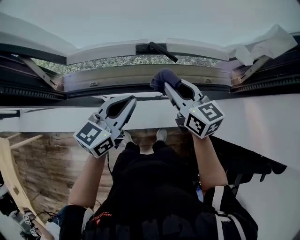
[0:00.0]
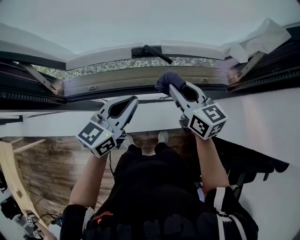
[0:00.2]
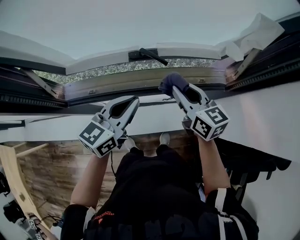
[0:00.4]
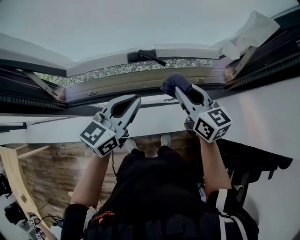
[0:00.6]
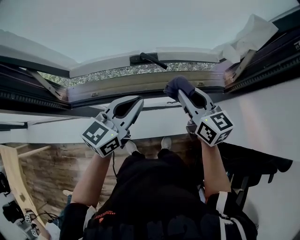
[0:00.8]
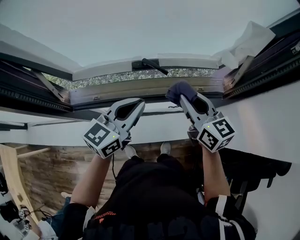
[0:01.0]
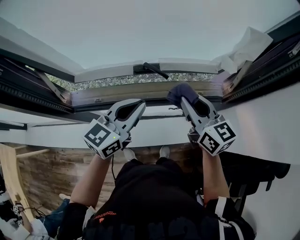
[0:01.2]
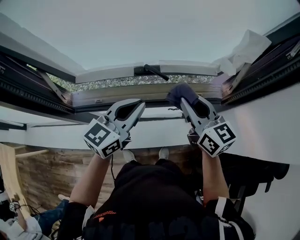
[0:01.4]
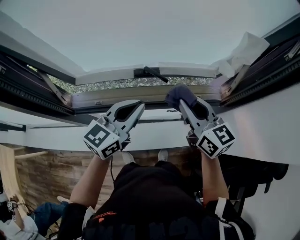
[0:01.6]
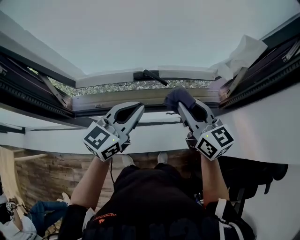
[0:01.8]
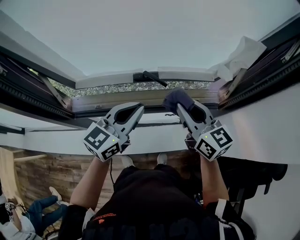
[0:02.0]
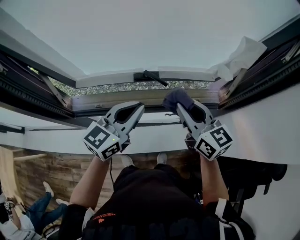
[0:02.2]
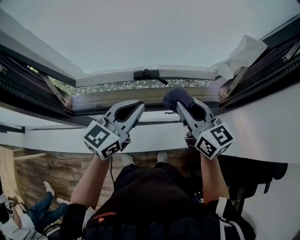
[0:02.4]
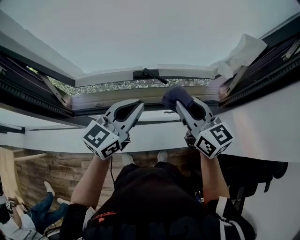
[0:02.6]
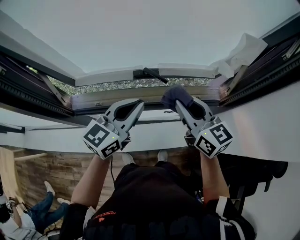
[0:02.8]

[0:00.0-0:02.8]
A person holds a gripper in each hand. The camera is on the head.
0:00.0 to 0:01.4: The right gripper shifts roughly 10 cm upward and to the right; the left gripper moves upward, approximately 10 cm.
0:01.4 to 0:02.8: The grippers stay close to where they were, moving slightly.

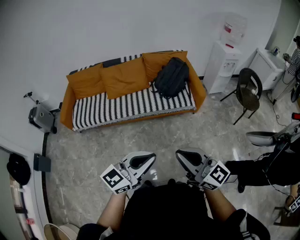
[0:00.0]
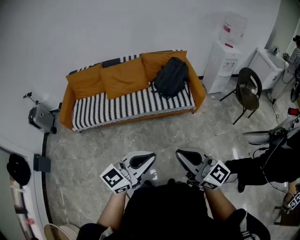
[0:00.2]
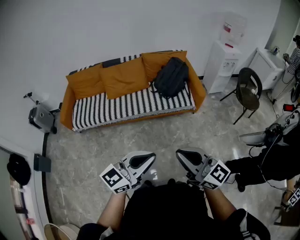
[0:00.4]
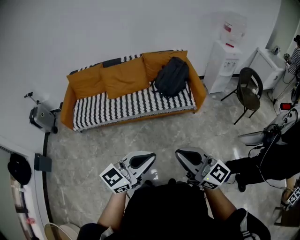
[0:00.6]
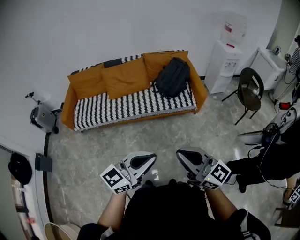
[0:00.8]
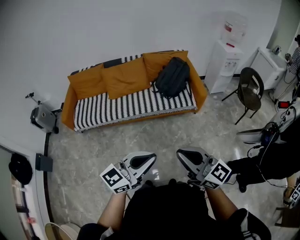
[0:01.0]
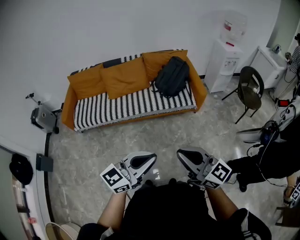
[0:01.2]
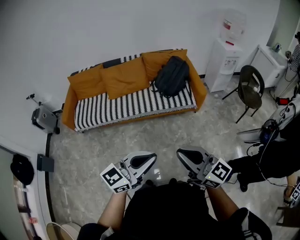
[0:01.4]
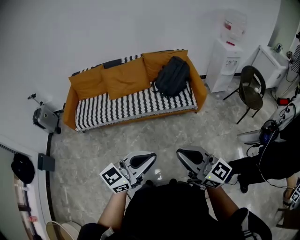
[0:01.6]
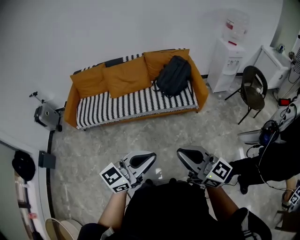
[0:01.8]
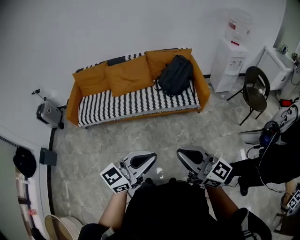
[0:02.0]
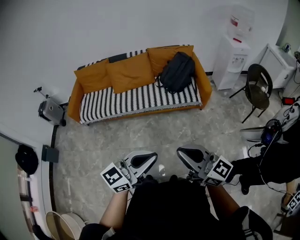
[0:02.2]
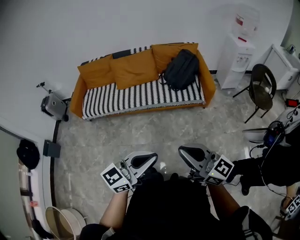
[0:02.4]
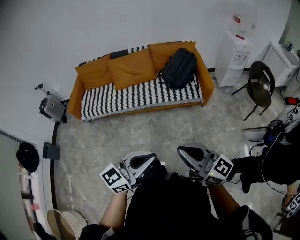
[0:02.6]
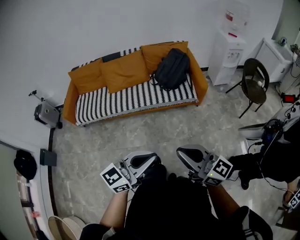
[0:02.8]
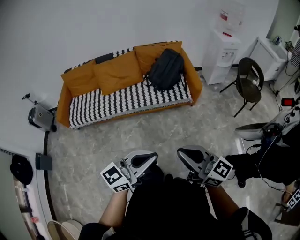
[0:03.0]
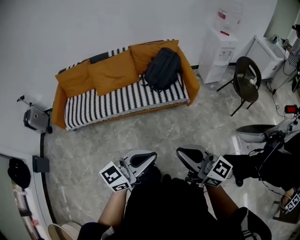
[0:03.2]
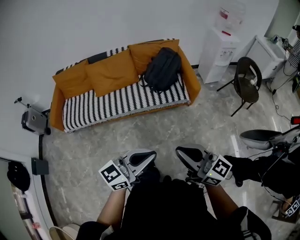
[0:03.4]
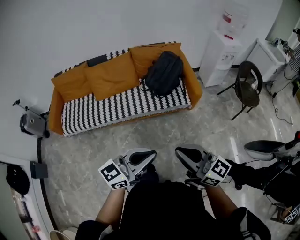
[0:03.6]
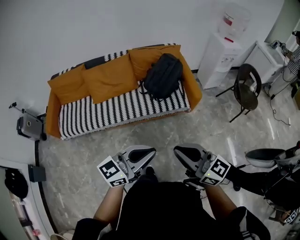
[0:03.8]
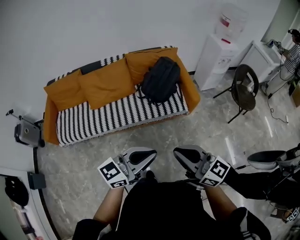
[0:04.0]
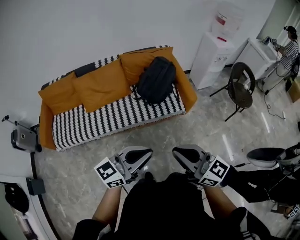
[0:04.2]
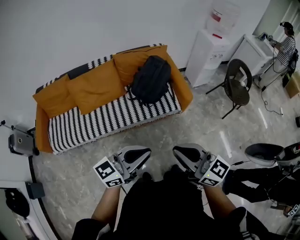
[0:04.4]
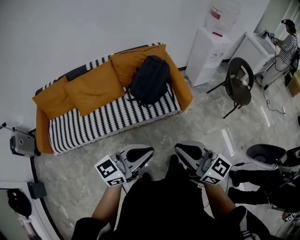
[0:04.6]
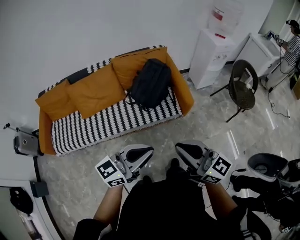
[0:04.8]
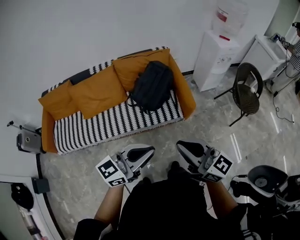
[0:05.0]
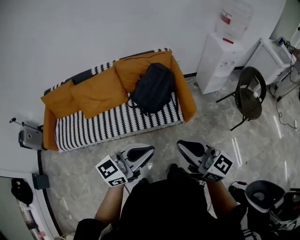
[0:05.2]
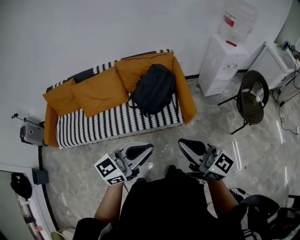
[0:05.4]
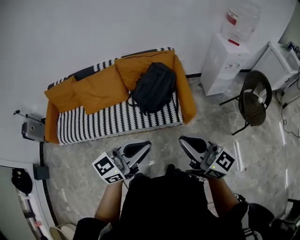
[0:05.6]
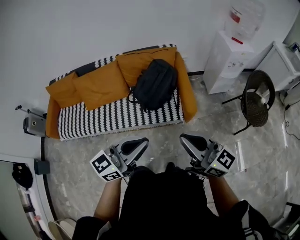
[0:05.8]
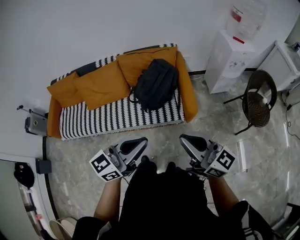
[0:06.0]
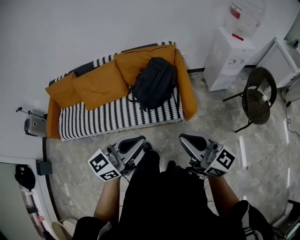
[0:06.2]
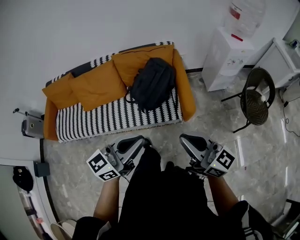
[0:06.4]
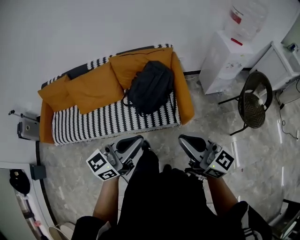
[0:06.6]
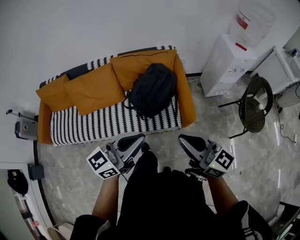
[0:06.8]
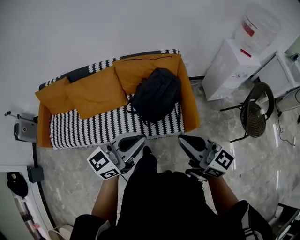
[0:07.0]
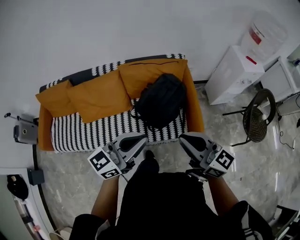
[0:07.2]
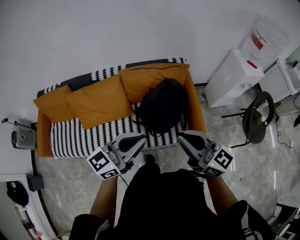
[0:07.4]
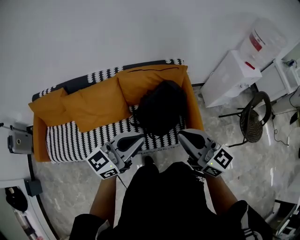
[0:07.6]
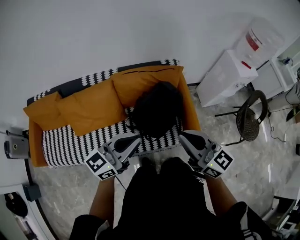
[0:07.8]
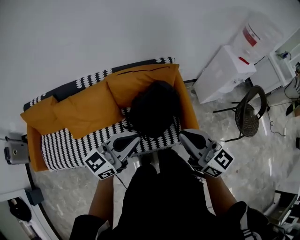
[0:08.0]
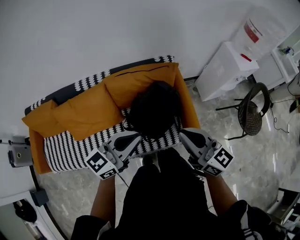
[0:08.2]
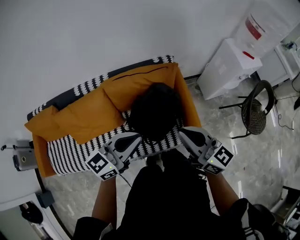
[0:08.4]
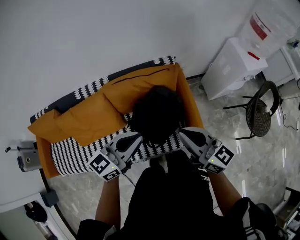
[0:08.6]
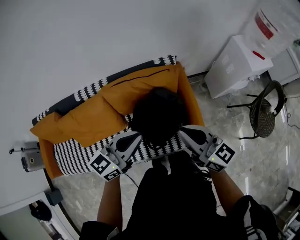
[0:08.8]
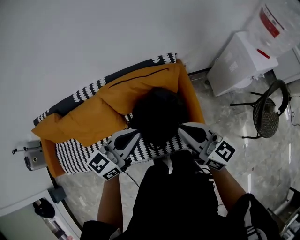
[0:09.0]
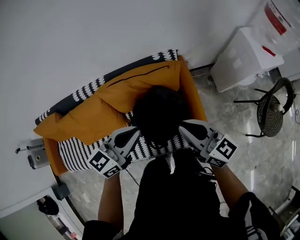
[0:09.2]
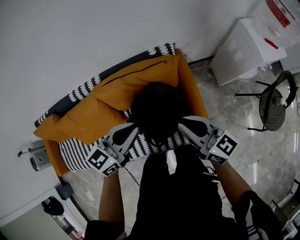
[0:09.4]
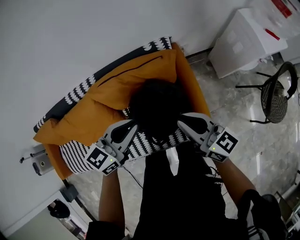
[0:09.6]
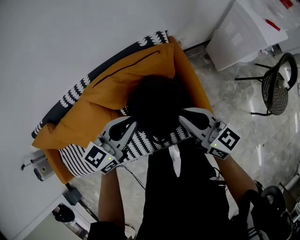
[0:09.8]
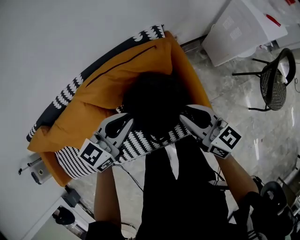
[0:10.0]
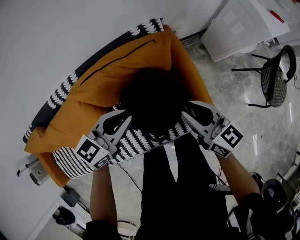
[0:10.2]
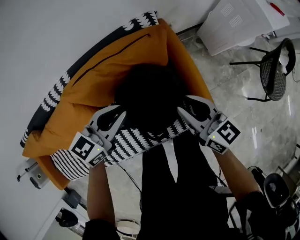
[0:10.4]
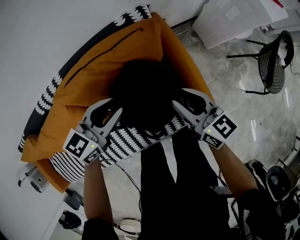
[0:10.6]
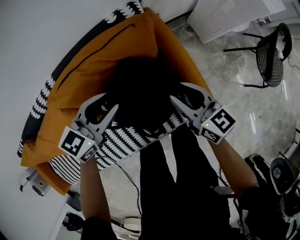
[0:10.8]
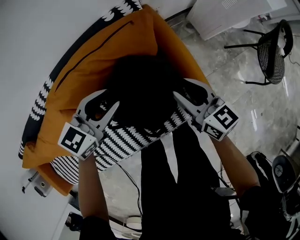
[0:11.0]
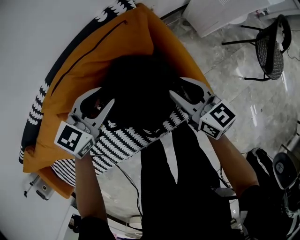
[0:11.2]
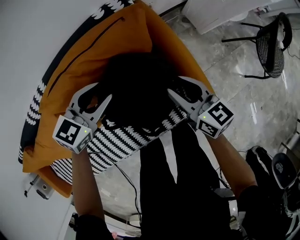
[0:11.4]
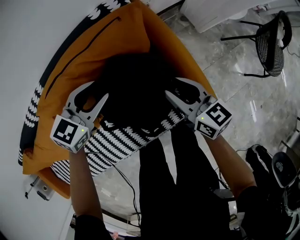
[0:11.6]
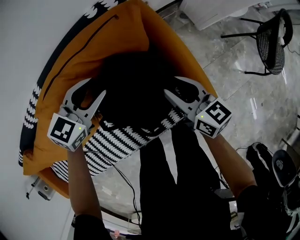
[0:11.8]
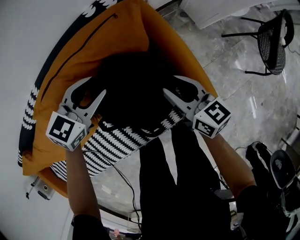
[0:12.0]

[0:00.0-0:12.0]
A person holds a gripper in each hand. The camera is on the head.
0:00.0 to 0:01.6: The grippers stay close to where they were, moving slightly.
0:01.6 to 0:03.0: The left gripper ends up roughly 5 cm from where it was, while the right gripper shifts by approximately 5 cm.
0:03.0 to 0:04.4: Both grippers travel together forward, roughly 25 cm.
0:04.4 to 0:06.0: Both grippers move to the right and forward, approximately 25 cm.
0:06.0 to 0:07.6: Both grippers move forward and to the left, approximately 30 cm.
0:07.6 to 0:09.0: The left gripper heads forward, covering roughly 20 cm. Meanwhile the right gripper travels forward and to the right by about 20 cm.
0:09.0 to 0:10.4: The right gripper is displaced downward by some 20 cm, and swivels some 20 degrees. The left gripper shifts roughly 20 cm downward and forward.
0:10.4 to 0:12.0: The left gripper travels downward and forward by about 15 cm, swivels about 20 degrees, and opens up. The right gripper heads downward, covering about 10 cm.

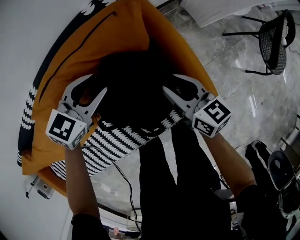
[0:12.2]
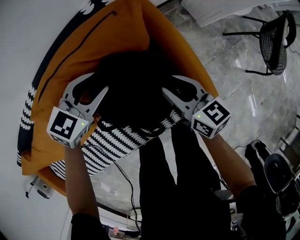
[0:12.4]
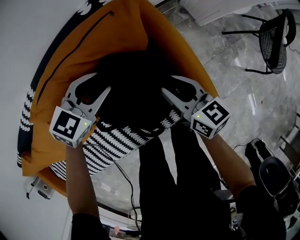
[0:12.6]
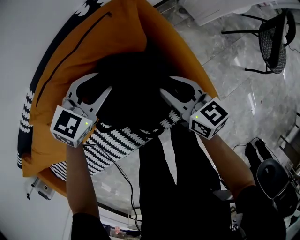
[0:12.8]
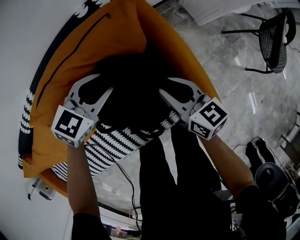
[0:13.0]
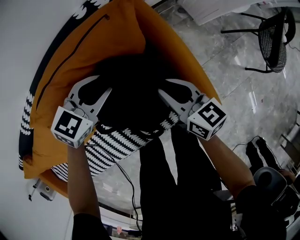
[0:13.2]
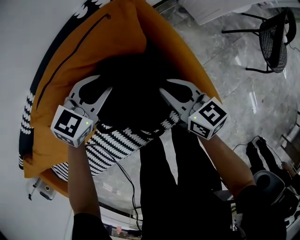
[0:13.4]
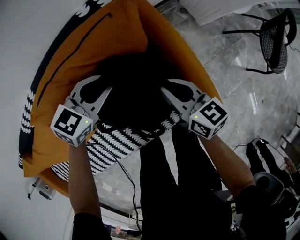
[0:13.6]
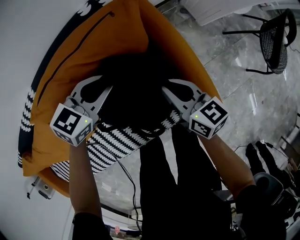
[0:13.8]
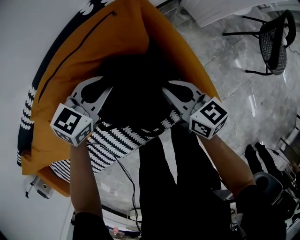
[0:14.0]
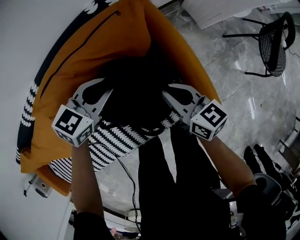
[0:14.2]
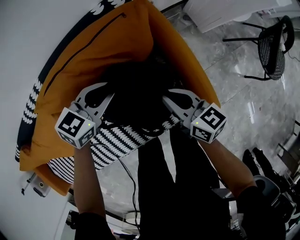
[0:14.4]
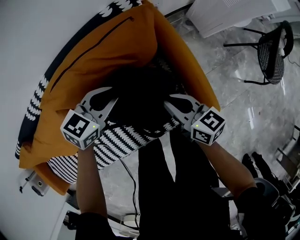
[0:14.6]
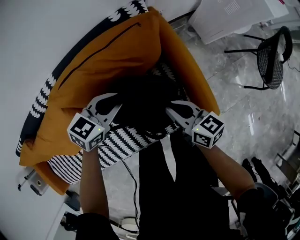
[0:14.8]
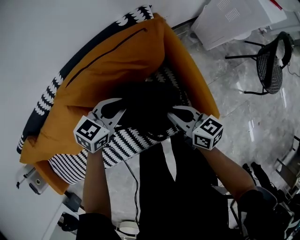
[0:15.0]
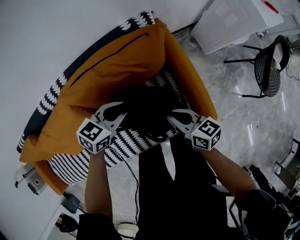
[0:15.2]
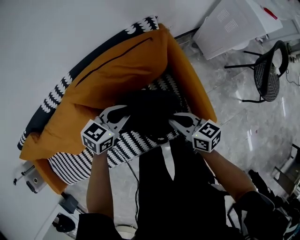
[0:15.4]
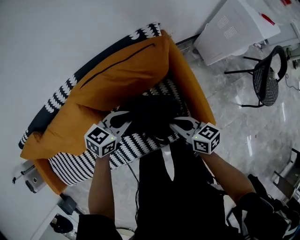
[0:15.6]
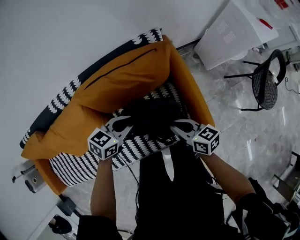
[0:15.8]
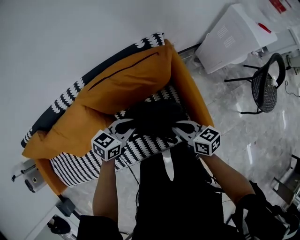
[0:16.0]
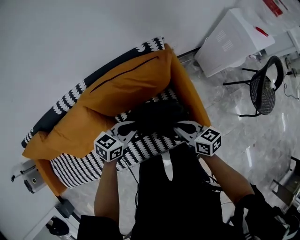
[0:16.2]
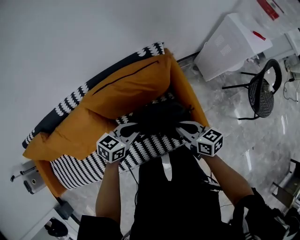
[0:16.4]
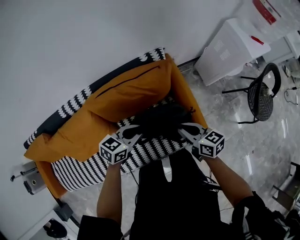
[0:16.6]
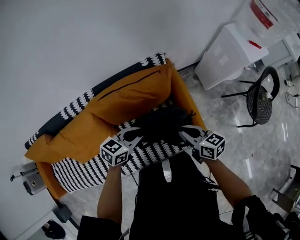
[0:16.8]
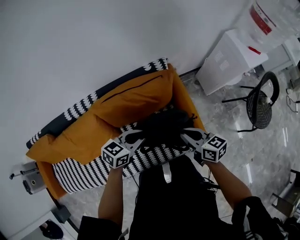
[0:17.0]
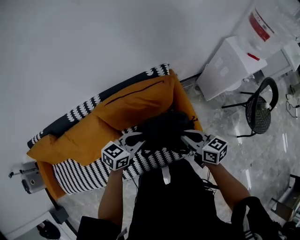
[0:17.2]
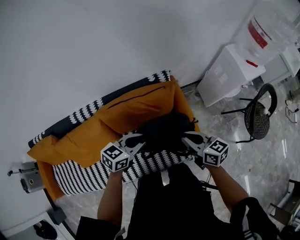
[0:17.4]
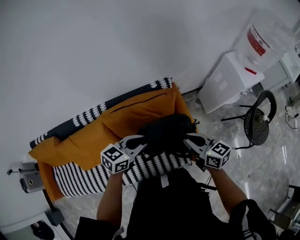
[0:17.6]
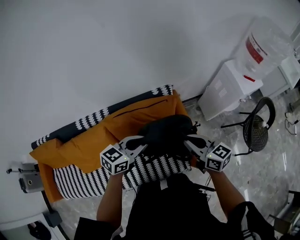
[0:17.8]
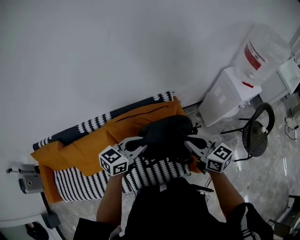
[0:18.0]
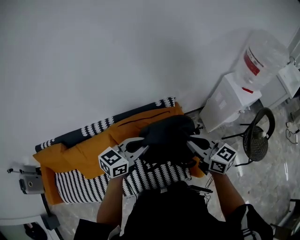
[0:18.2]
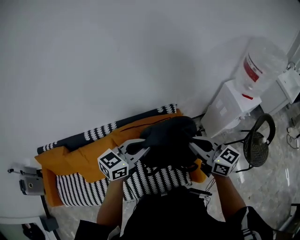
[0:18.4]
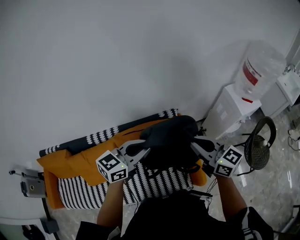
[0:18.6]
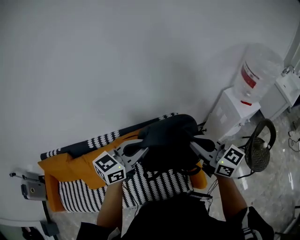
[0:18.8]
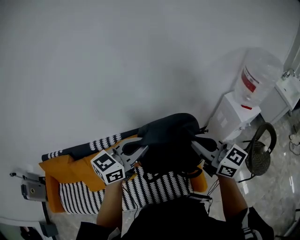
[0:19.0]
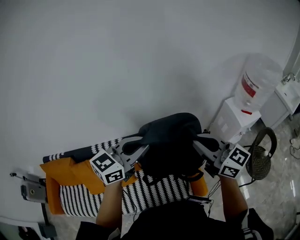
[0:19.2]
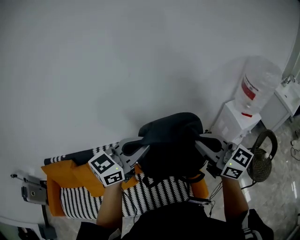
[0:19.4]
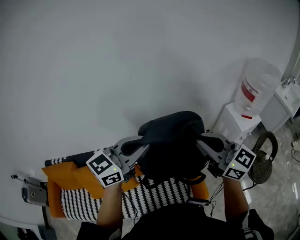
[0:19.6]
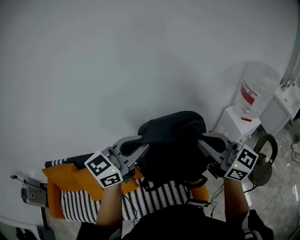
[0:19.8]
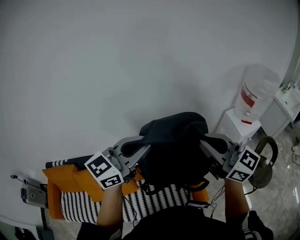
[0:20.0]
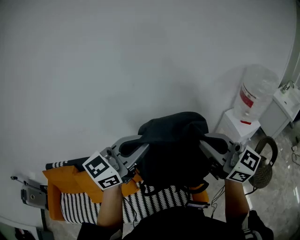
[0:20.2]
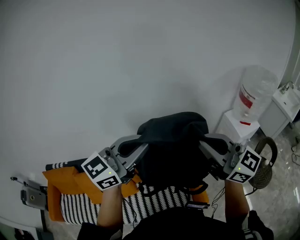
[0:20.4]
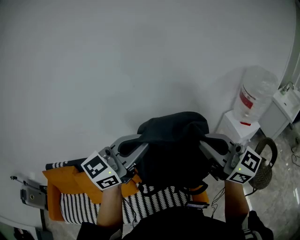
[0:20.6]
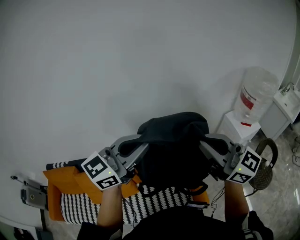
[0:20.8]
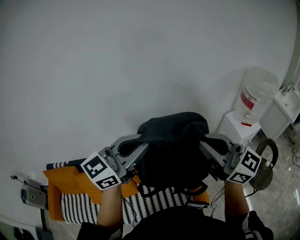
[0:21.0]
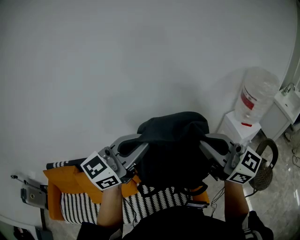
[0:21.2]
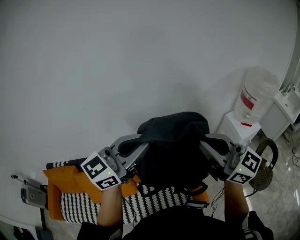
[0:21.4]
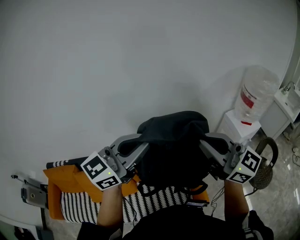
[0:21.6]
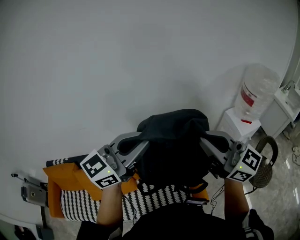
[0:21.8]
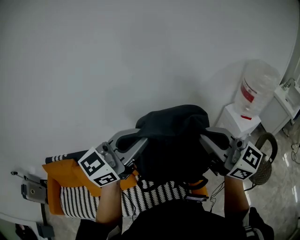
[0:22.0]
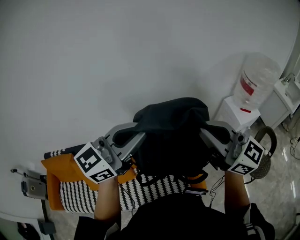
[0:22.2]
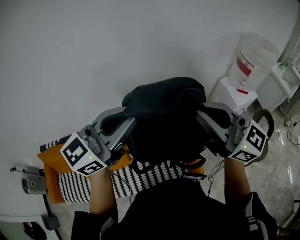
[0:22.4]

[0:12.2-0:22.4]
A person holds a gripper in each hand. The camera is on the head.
0:12.2 to 0:13.6: The right gripper closes.
0:13.6 to 0:15.2: Both grippers move backward and upward, roughly 10 cm.
0:15.2 to 0:16.6: The two grippers go approximately 5 cm upward.
0:16.6 to 0:18.0: Both grippers travel together upward, some 20 cm. The right gripper turns by some 20 degrees.
0:18.0 to 0:19.4: The grippers both shift upward by approximately 25 cm. The left gripper rotates about 20 degrees; the right gripper turns by roughly 30 degrees.
0:19.4 to 0:21.0: Both grippers travel together upward, about 10 cm.
0:21.0 to 0:22.4: Neither gripper changes place.
